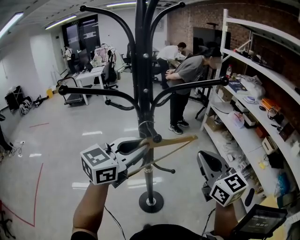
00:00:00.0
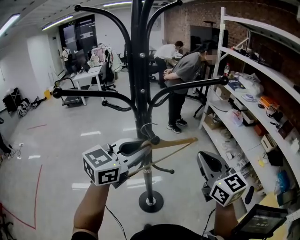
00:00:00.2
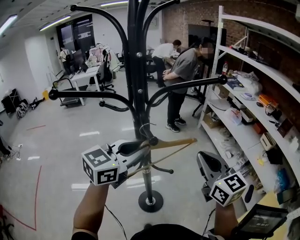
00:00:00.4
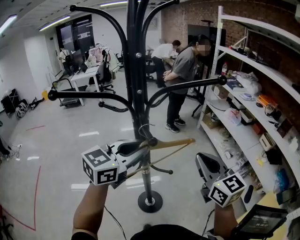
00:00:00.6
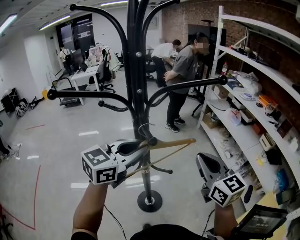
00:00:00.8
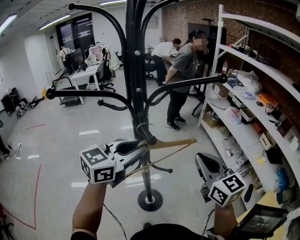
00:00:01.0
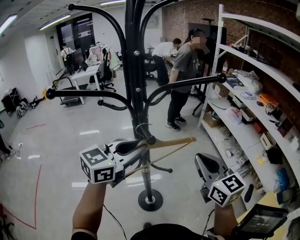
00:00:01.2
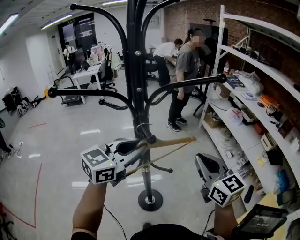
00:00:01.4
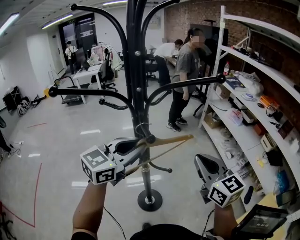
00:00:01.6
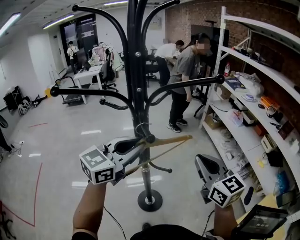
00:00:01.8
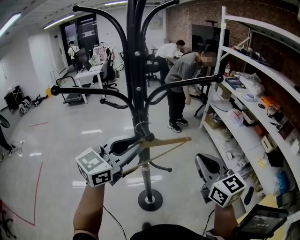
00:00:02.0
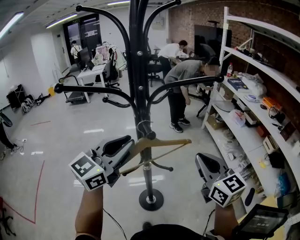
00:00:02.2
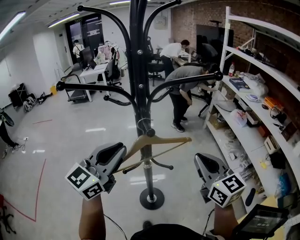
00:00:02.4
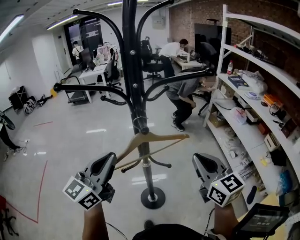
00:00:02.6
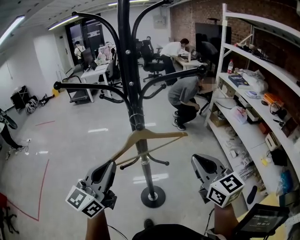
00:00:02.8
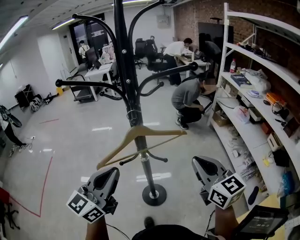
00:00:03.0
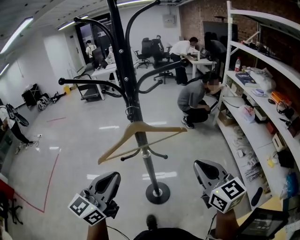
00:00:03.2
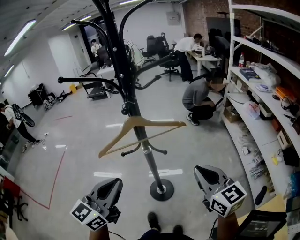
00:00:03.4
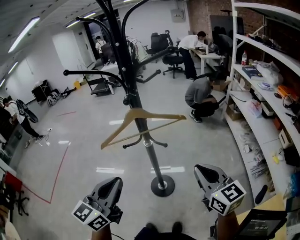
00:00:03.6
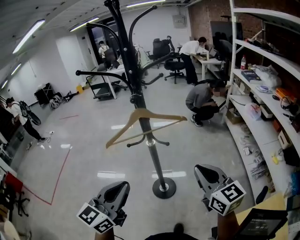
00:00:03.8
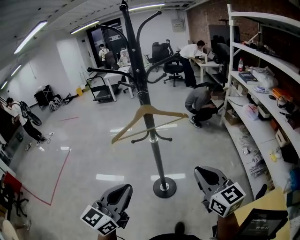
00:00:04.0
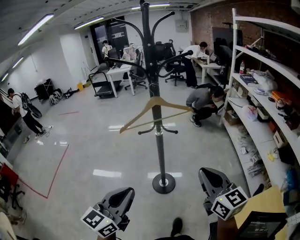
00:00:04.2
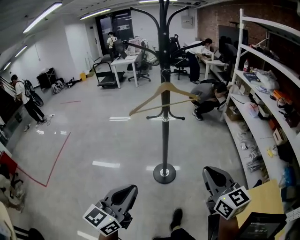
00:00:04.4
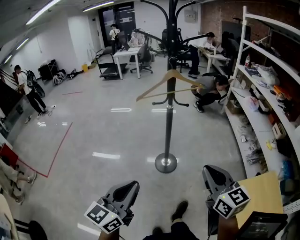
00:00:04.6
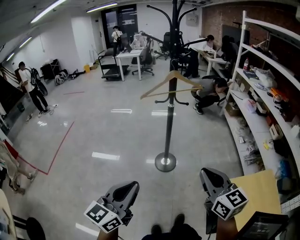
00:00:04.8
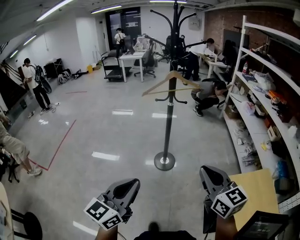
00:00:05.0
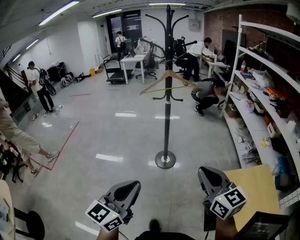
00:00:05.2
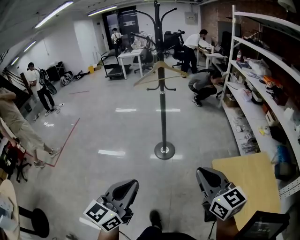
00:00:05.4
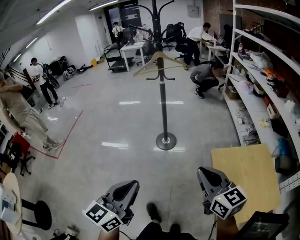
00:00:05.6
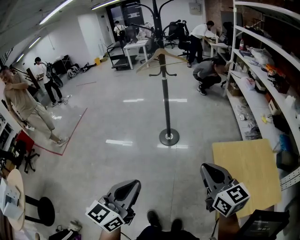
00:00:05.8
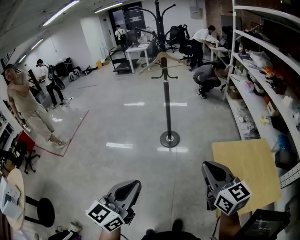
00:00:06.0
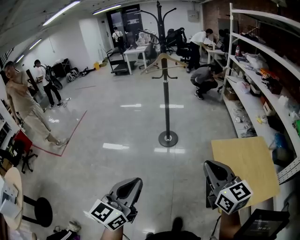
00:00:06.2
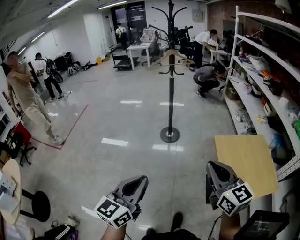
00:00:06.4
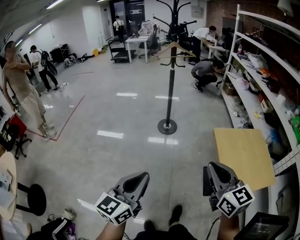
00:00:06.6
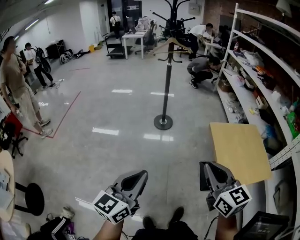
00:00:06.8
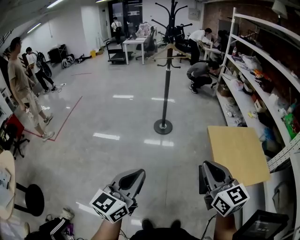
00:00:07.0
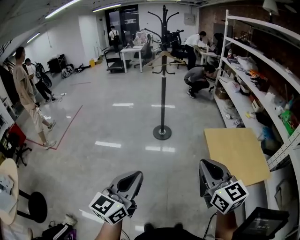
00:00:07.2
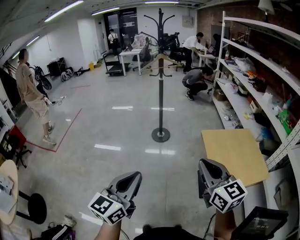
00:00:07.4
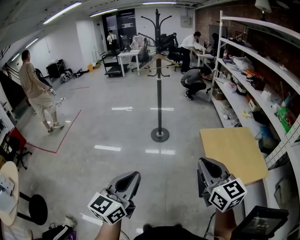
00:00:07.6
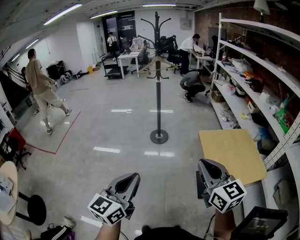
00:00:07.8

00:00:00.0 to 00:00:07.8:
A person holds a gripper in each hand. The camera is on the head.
00:00:00.0 to 00:00:01.6: There are only small adjustments of the grippers.
00:00:01.6 to 00:00:03.2: The right gripper shifts about 5 cm backward; the left gripper heads backward, covering approximately 20 cm, and turns by approximately 30 degrees.
00:00:03.2 to 00:00:04.6: The grippers both shift backward by about 30 cm.
00:00:04.6 to 00:00:06.2: Both grippers move backward, some 35 cm.
00:00:06.2 to 00:00:07.8: The grippers both shift backward by roughly 15 cm.

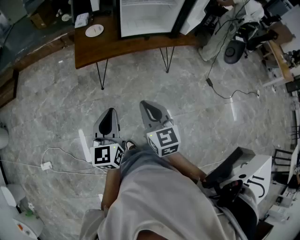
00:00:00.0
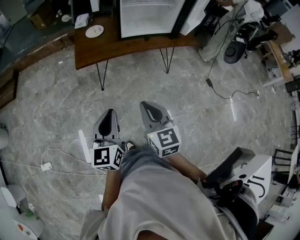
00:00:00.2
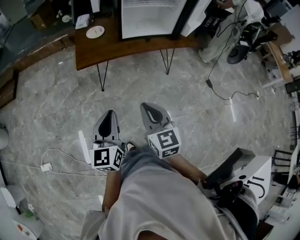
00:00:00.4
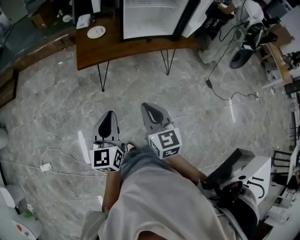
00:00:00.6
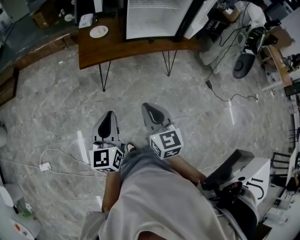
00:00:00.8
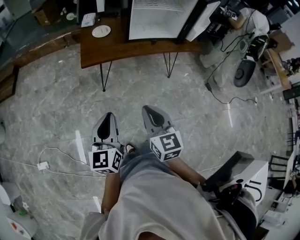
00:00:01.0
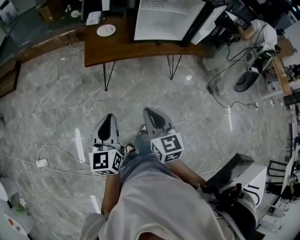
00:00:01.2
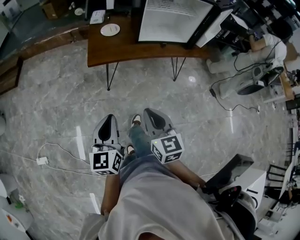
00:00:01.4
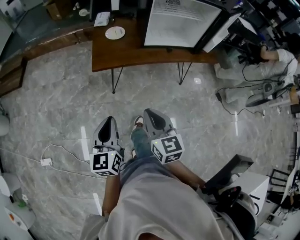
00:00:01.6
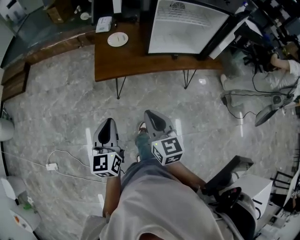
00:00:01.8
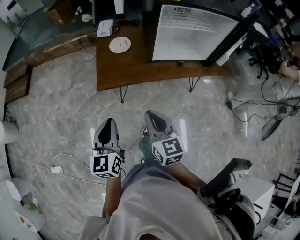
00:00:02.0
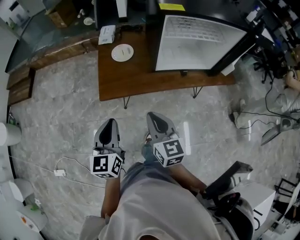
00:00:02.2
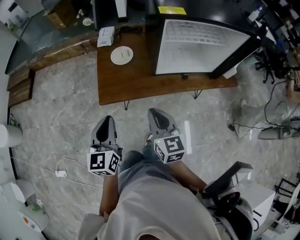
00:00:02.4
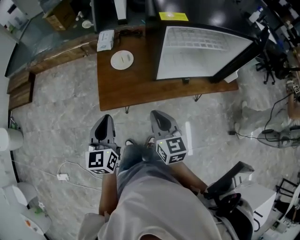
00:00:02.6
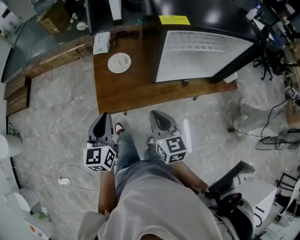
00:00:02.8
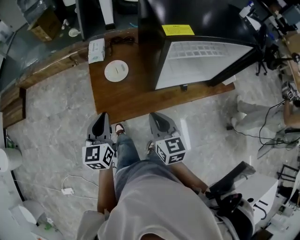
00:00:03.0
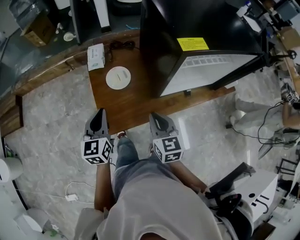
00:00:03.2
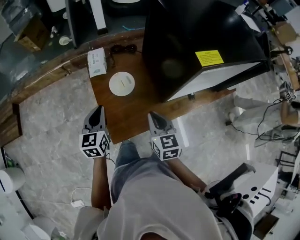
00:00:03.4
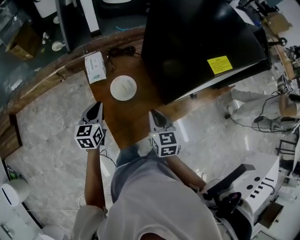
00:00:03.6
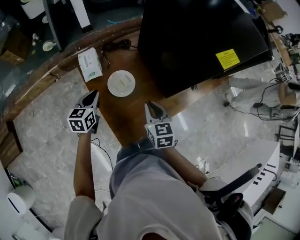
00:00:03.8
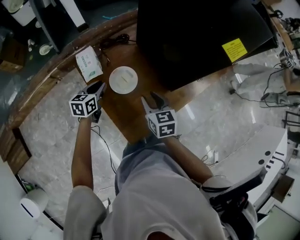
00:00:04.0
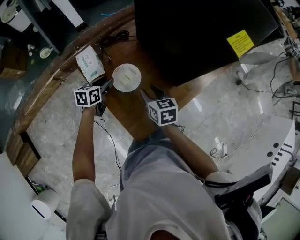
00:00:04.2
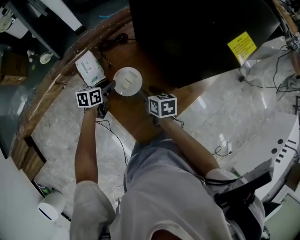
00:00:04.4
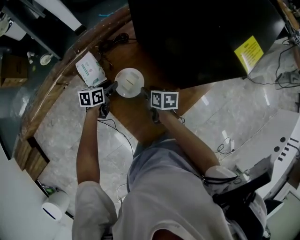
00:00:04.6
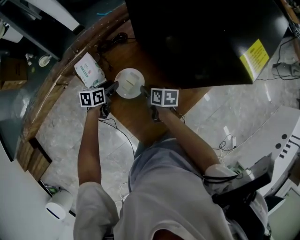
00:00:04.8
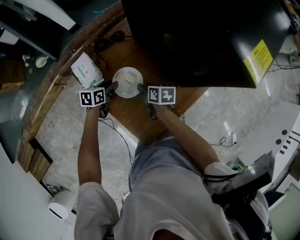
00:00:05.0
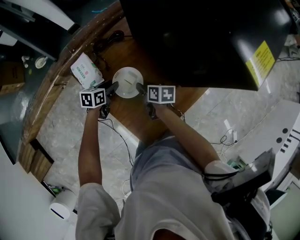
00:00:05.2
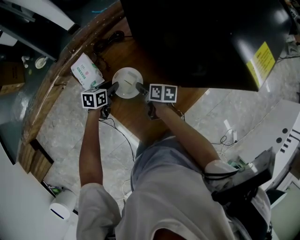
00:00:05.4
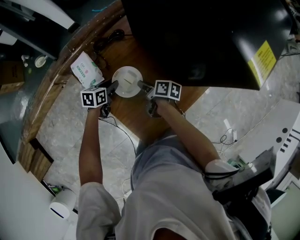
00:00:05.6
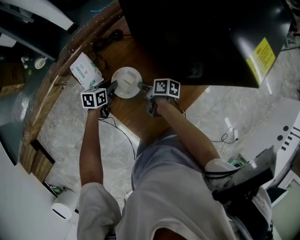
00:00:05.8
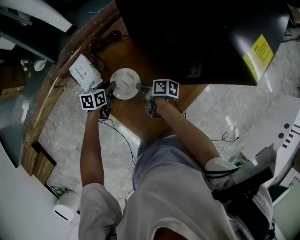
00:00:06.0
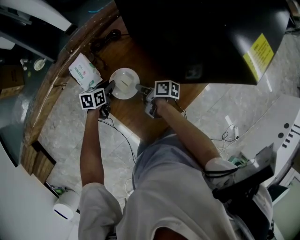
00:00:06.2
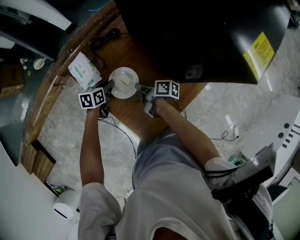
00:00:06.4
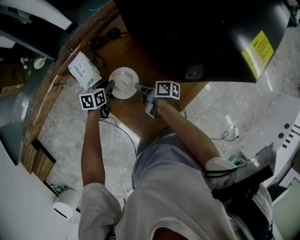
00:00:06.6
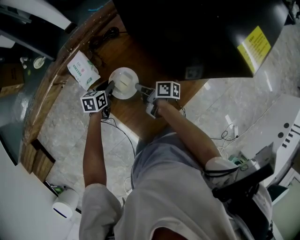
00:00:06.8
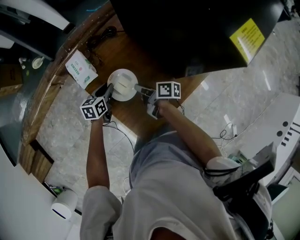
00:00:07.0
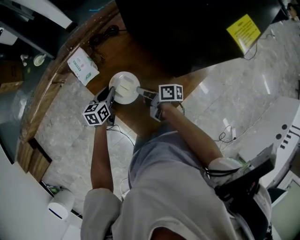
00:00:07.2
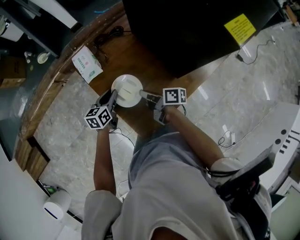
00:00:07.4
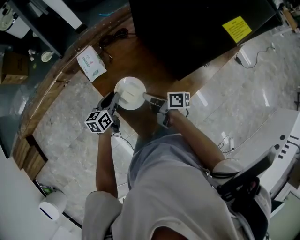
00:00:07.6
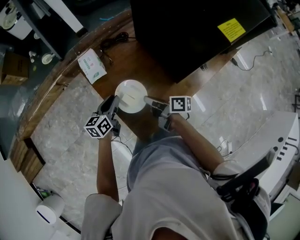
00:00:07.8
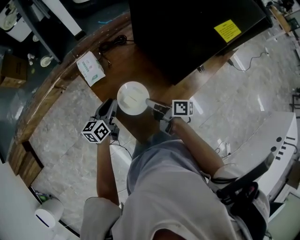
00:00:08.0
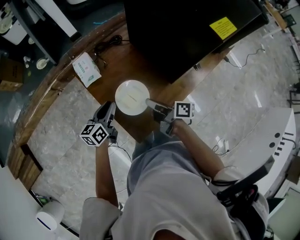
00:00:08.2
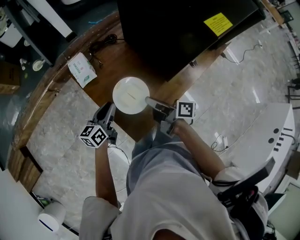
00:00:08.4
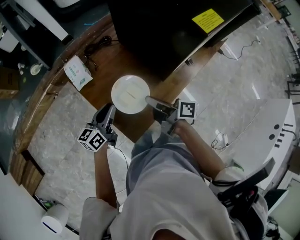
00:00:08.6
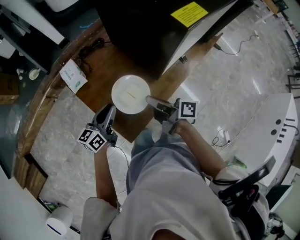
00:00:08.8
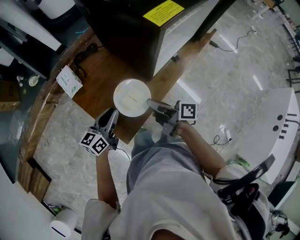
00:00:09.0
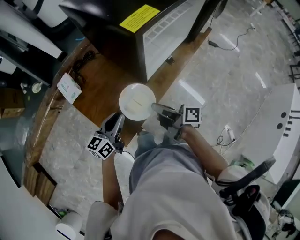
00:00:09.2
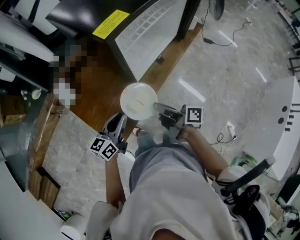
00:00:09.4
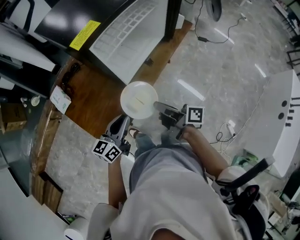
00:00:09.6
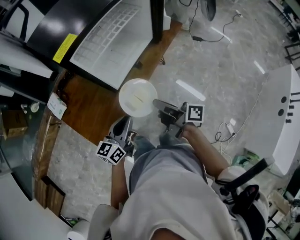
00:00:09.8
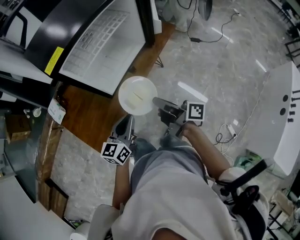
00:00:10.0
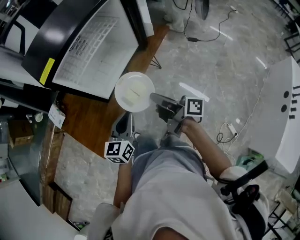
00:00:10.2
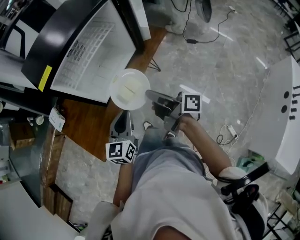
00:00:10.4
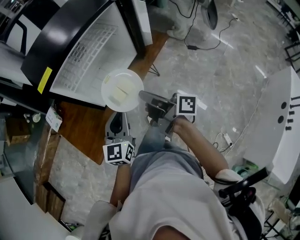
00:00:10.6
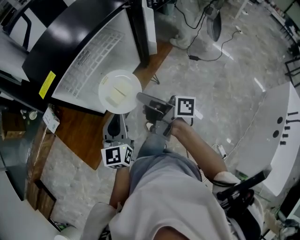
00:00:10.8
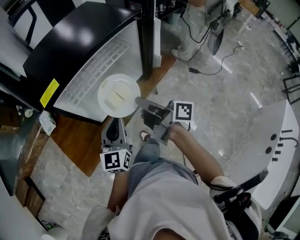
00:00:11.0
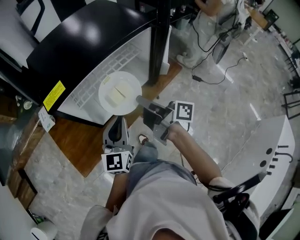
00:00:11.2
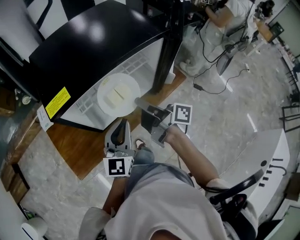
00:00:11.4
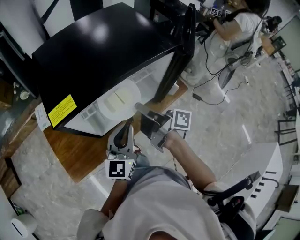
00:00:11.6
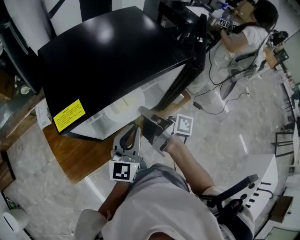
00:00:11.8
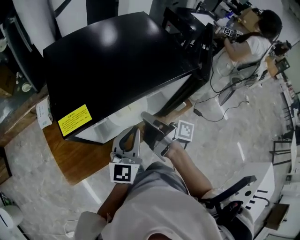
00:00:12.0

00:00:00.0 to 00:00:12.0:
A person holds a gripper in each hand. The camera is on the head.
00:00:00.0 to 00:00:01.6: The left gripper goes approximately 15 cm to the left and forward; the right gripper travels forward and to the left by roughly 15 cm.
00:00:01.6 to 00:00:03.0: Both grippers are carried forward, some 60 cm.
00:00:03.0 to 00:00:04.4: The right gripper ends up some 40 cm from where it was, rotates some 40 degrees, and opens, while the left gripper moves about 50 cm, rotates roughly 60 degrees, and opens up.
00:00:04.4 to 00:00:06.0: Both grippers travel together downward, roughly 5 cm. The right gripper rotates around the line of its fingers by some 40 degrees, clockwise from behind, and closes.
00:00:06.0 to 00:00:07.6: The grippers both shift backward and upward by about 20 cm. The left gripper changes its angle by approximately 30 degrees. Meanwhile the right gripper changes its angle by roughly 20 degrees.
00:00:07.6 to 00:00:09.0: The two grippers go roughly 20 cm to the right, upward and backward. The left gripper rotates roughly 20 degrees.
00:00:09.0 to 00:00:10.4: Both grippers are carried to the right, approximately 60 cm. The left gripper changes its angle by some 30 degrees.
00:00:10.4 to 00:00:12.0: Both grippers travel together forward, roughly 35 cm. The right gripper swivels about 20 degrees; the left gripper rotates about 30 degrees.

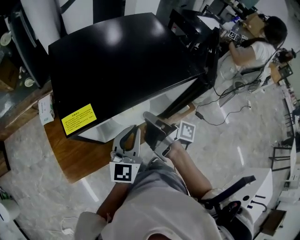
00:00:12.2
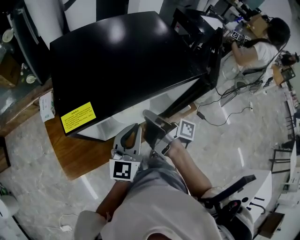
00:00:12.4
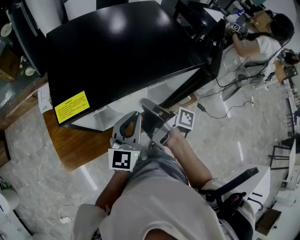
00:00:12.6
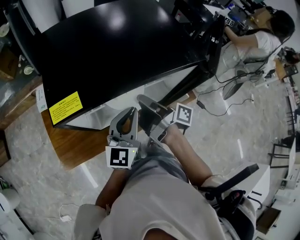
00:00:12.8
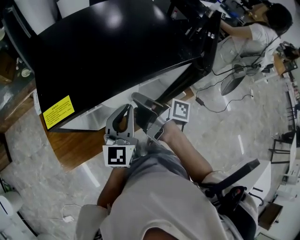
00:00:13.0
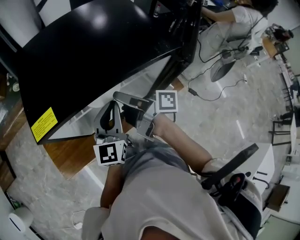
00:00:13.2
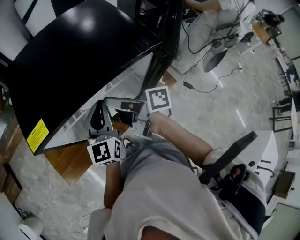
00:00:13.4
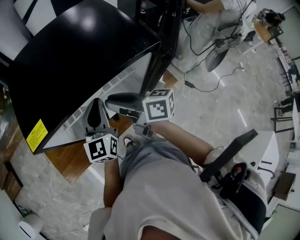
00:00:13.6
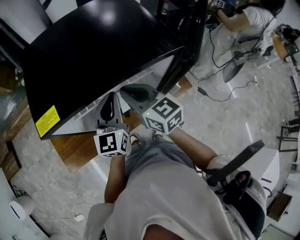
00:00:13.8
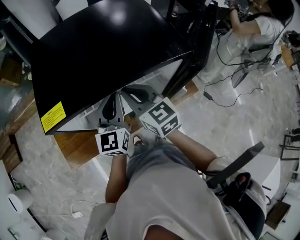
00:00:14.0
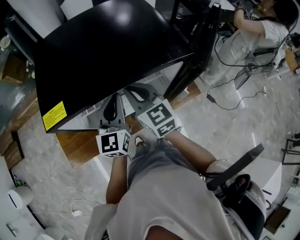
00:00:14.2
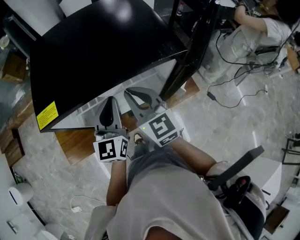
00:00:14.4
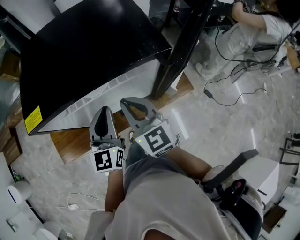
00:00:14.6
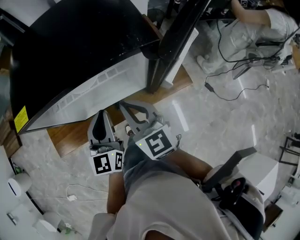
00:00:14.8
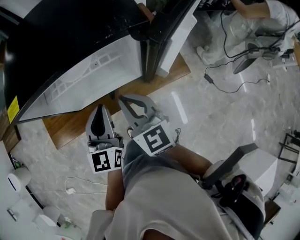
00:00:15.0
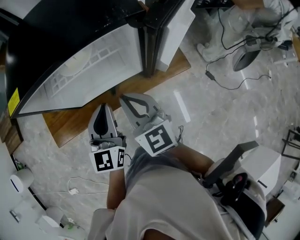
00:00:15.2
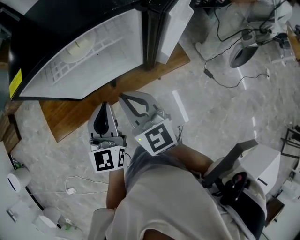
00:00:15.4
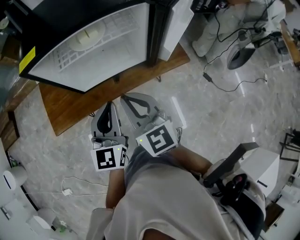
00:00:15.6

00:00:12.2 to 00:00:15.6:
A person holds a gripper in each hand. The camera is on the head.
00:00:12.2 to 00:00:13.8: The right gripper rolls counterclockwise, seen from behind, by approximately 70 degrees, and opens, then closes once more. Meanwhile the left gripper is displaced forward by roughly 5 cm.
00:00:13.8 to 00:00:15.6: The grippers both shift backward by roughly 30 cm.
